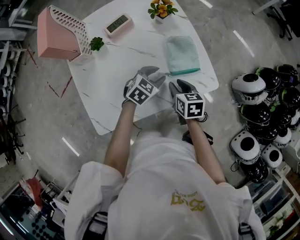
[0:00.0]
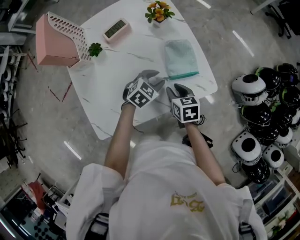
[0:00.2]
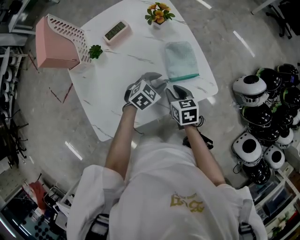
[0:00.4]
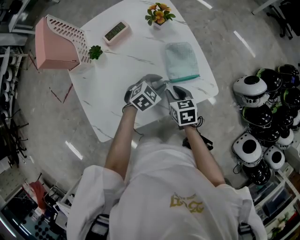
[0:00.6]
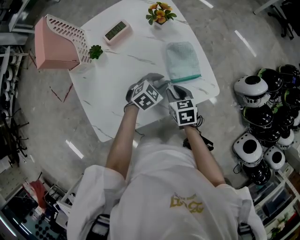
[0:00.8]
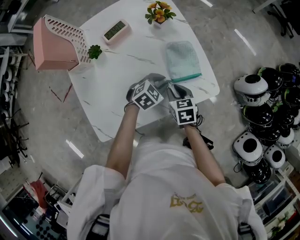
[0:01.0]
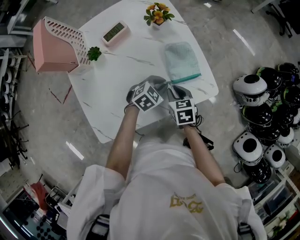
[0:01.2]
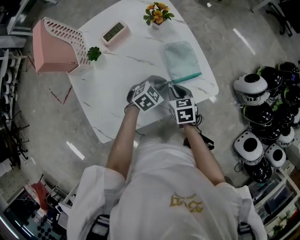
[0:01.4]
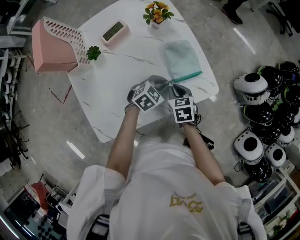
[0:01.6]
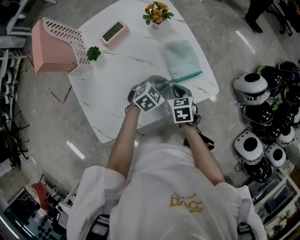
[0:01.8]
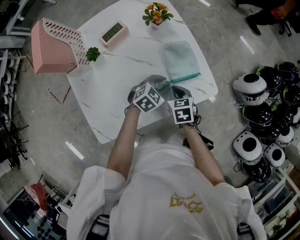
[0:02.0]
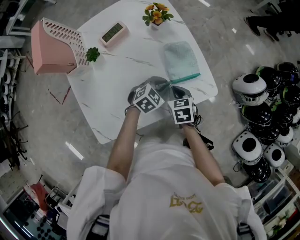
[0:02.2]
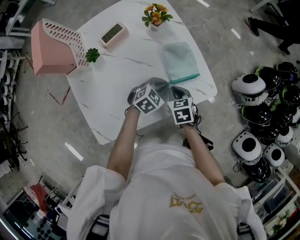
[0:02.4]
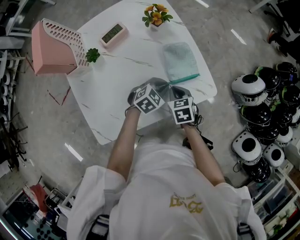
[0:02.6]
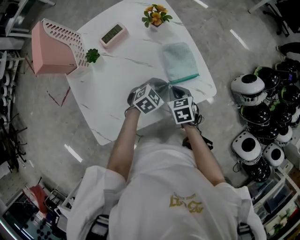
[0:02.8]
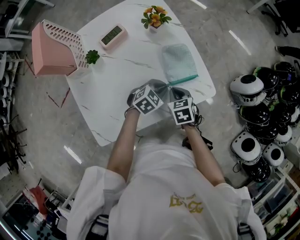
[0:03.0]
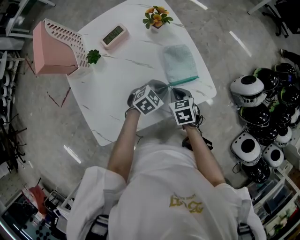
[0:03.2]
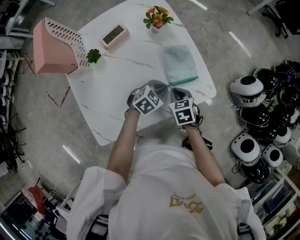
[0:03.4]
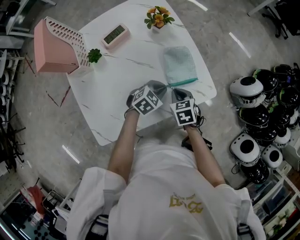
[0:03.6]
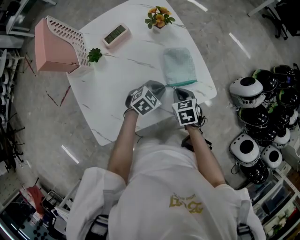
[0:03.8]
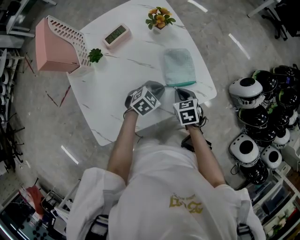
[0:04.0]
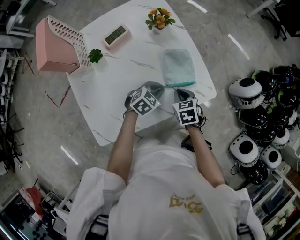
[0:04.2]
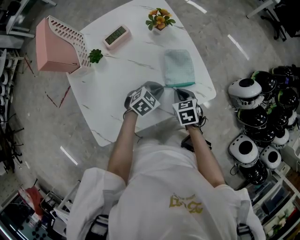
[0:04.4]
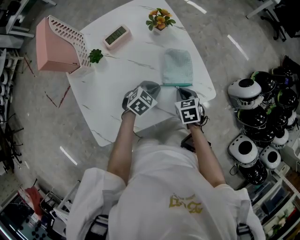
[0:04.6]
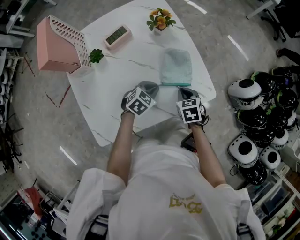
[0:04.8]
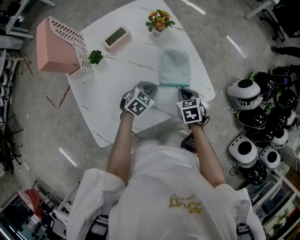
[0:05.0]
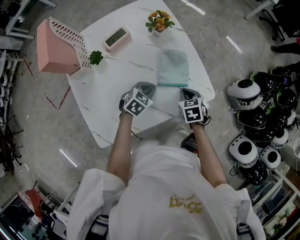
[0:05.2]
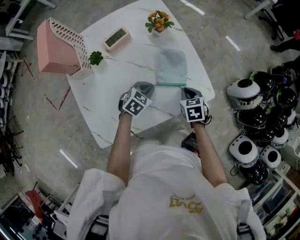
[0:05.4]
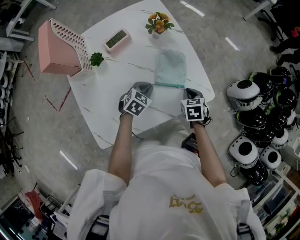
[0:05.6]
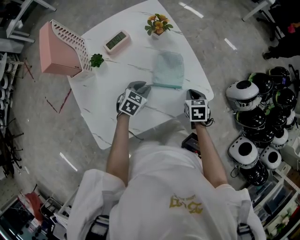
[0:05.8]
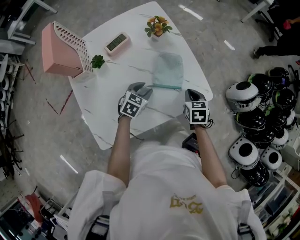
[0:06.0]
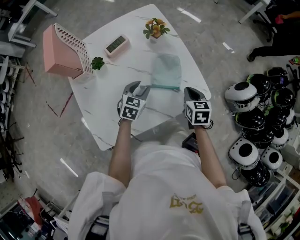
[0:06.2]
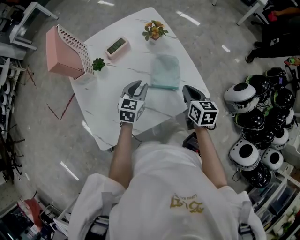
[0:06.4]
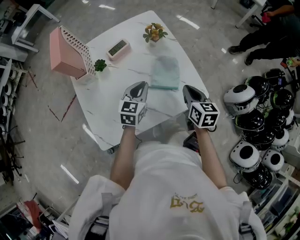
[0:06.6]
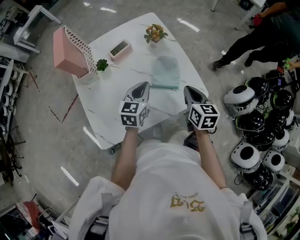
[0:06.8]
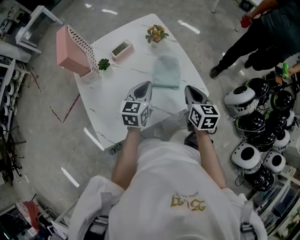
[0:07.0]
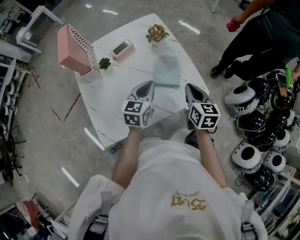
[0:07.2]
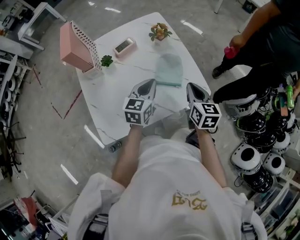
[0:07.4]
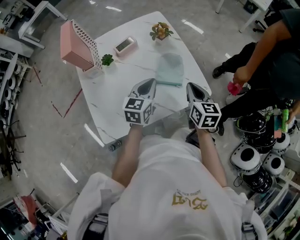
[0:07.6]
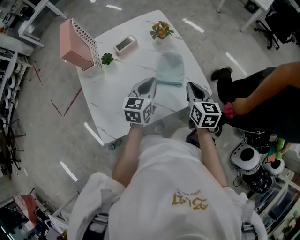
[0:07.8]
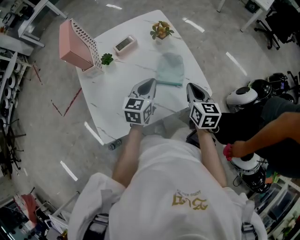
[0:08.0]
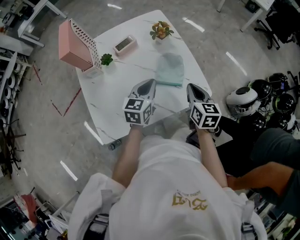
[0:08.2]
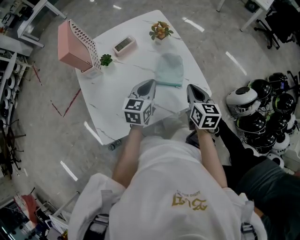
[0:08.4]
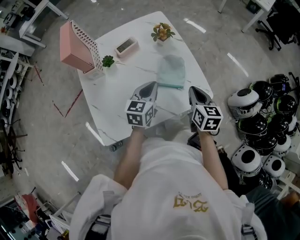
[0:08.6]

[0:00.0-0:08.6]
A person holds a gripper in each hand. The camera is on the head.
0.0 to 1.4 s: The left gripper closes its fingers.
1.4 to 4.4 s: The grippers stay close to where they were, moving slightly.
4.4 to 5.8 s: The right gripper moves to the right, about 5 cm. Meanwhile the left gripper moves to the left, about 10 cm.
5.8 to 7.2 s: Both grippers move upward, some 20 cm. The left gripper turns by roughly 30 degrees, and closes; the right gripper angles its fingers upward, by about 30 degrees.
7.2 to 8.6 s: There are only small adjustments of the grippers.

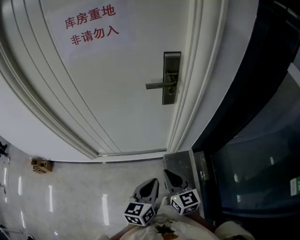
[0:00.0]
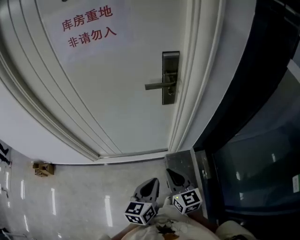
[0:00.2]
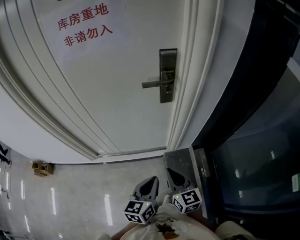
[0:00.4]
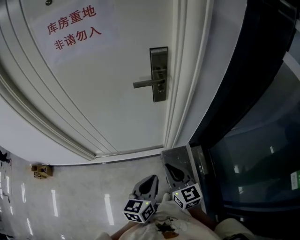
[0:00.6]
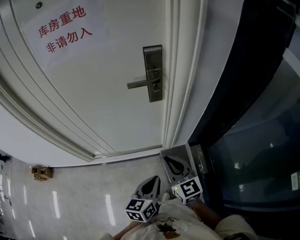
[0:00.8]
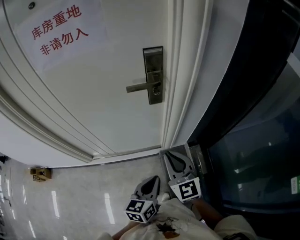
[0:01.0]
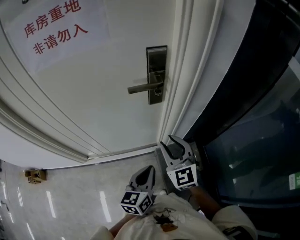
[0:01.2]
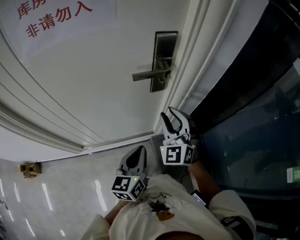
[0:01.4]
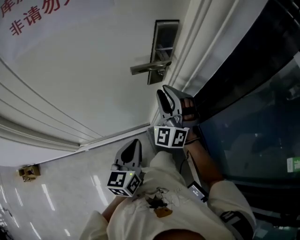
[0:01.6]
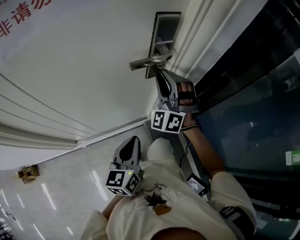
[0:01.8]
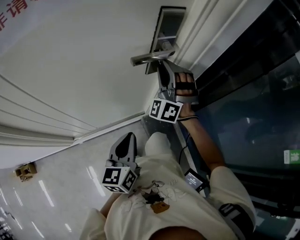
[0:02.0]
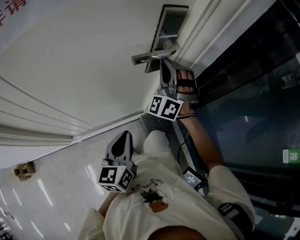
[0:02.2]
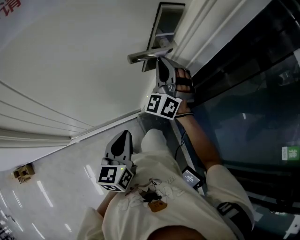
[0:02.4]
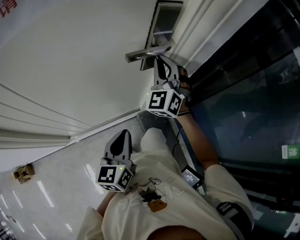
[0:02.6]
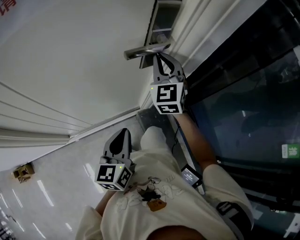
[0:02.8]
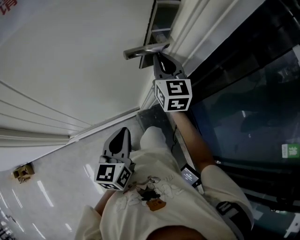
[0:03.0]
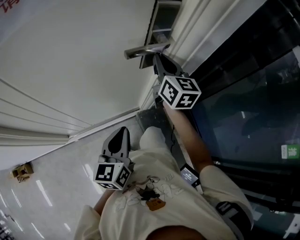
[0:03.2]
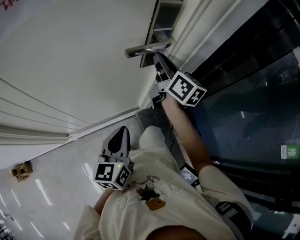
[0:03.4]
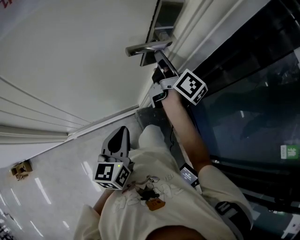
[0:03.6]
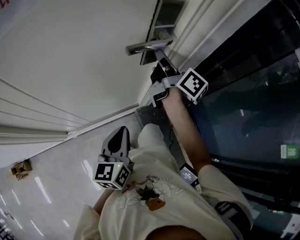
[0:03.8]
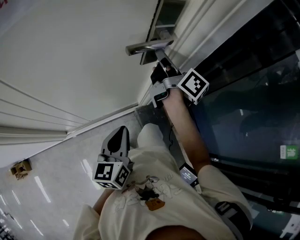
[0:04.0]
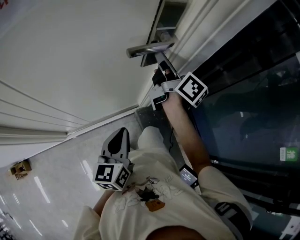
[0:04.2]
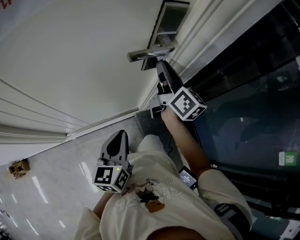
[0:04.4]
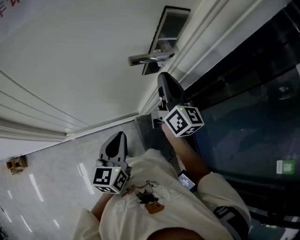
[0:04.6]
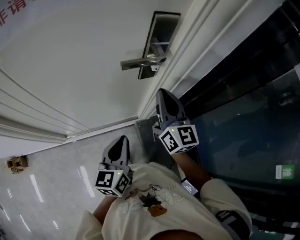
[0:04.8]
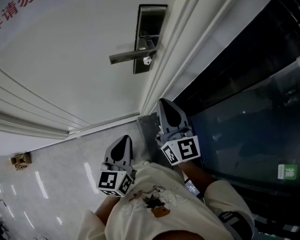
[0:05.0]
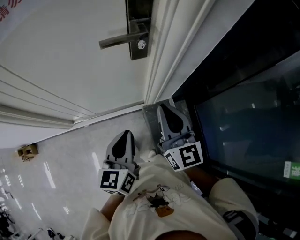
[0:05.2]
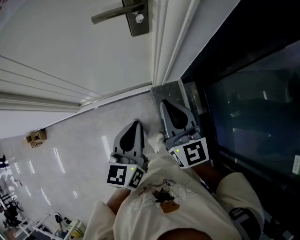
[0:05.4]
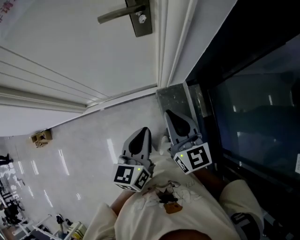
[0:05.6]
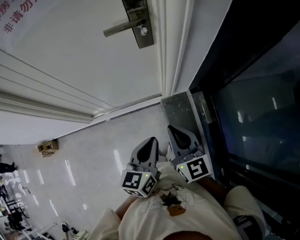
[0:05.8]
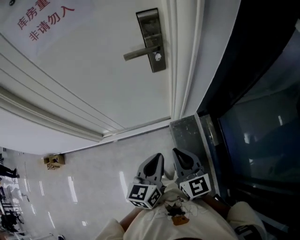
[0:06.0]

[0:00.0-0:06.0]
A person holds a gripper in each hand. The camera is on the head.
0.0 to 1.6 s: The right gripper heads forward, covering about 30 cm, rotates around the line of its fingers by about 70 degrees, counterclockwise from behind, and opens its fingers. Meanwhile the left gripper travels forward and to the left by approximately 20 cm.
1.6 to 3.0 s: The right gripper is displaced forward by roughly 10 cm, rolls clockwise, seen from behind, by about 50 degrees, and closes.
3.0 to 4.4 s: The right gripper rolls clockwise, seen from behind, by roughly 40 degrees.
4.4 to 6.0 s: The left gripper moves backward and to the right, approximately 20 cm, while the right gripper is displaced backward by about 35 cm, and rotates some 30 degrees.

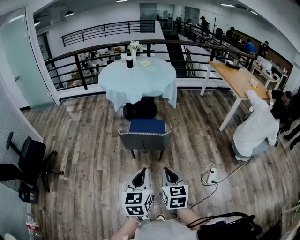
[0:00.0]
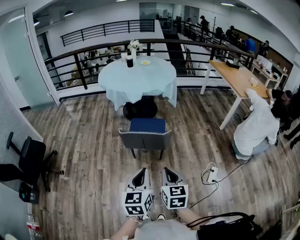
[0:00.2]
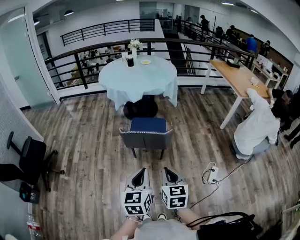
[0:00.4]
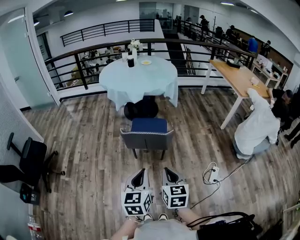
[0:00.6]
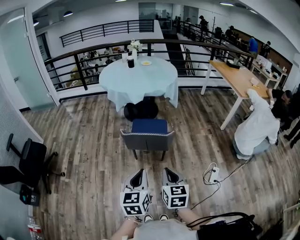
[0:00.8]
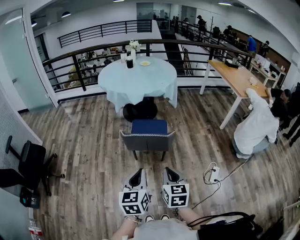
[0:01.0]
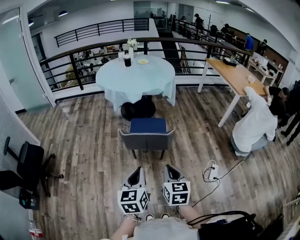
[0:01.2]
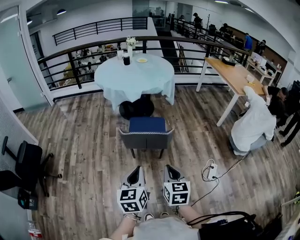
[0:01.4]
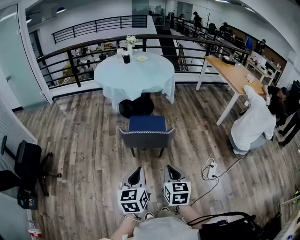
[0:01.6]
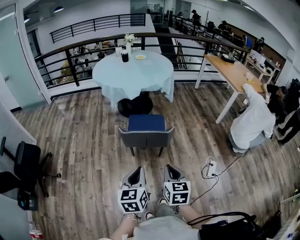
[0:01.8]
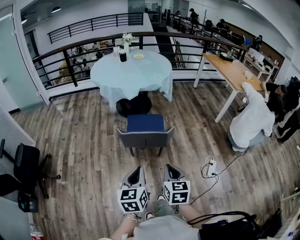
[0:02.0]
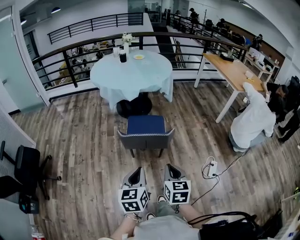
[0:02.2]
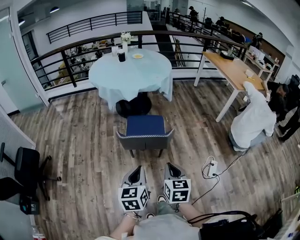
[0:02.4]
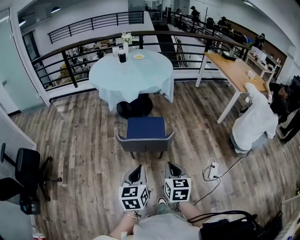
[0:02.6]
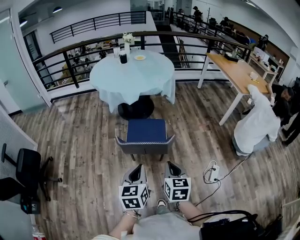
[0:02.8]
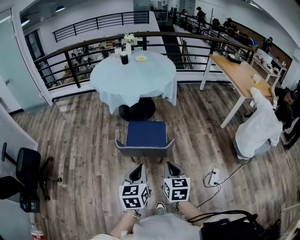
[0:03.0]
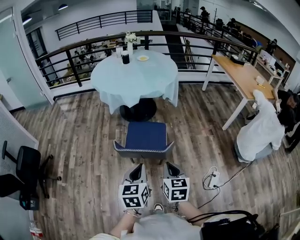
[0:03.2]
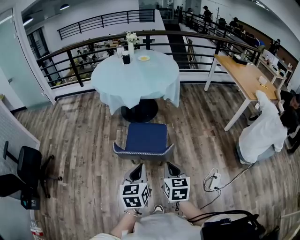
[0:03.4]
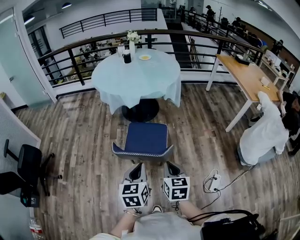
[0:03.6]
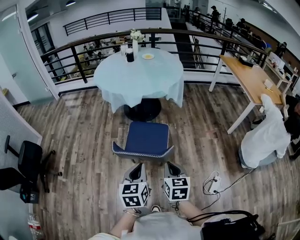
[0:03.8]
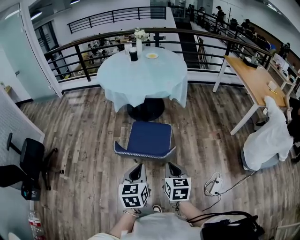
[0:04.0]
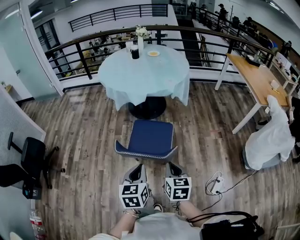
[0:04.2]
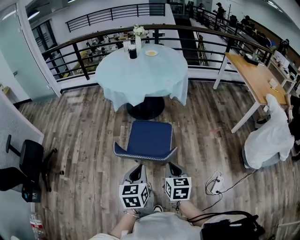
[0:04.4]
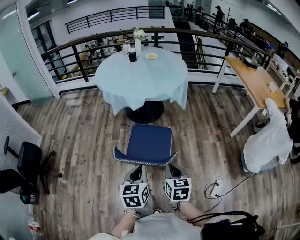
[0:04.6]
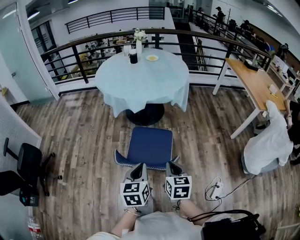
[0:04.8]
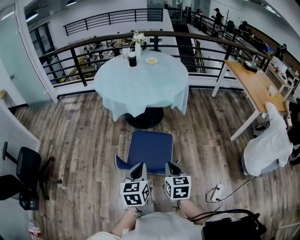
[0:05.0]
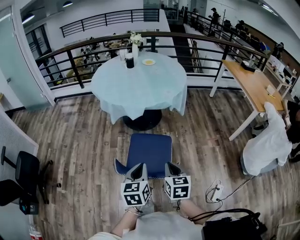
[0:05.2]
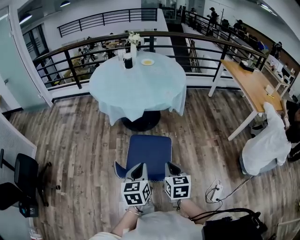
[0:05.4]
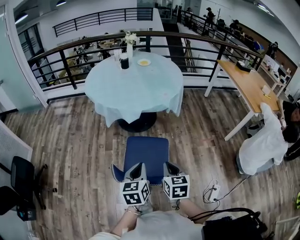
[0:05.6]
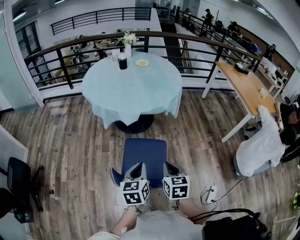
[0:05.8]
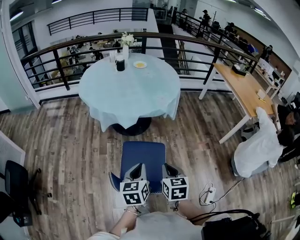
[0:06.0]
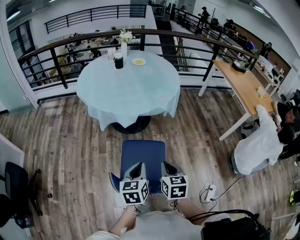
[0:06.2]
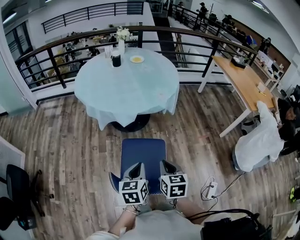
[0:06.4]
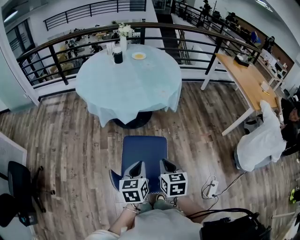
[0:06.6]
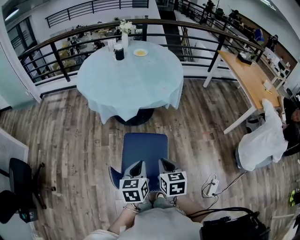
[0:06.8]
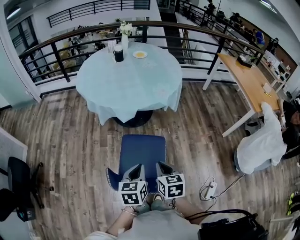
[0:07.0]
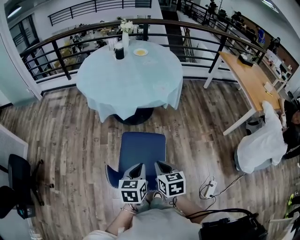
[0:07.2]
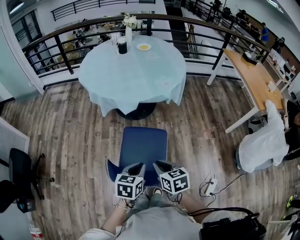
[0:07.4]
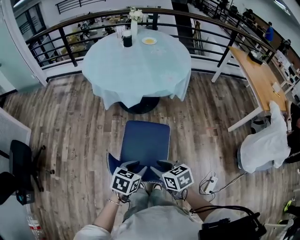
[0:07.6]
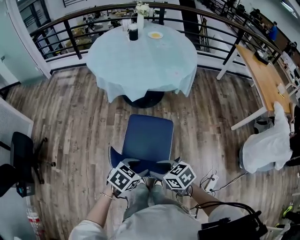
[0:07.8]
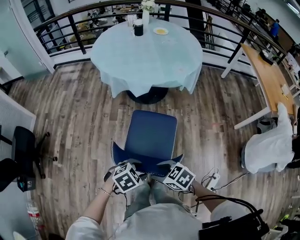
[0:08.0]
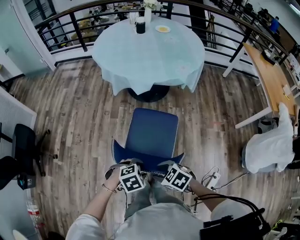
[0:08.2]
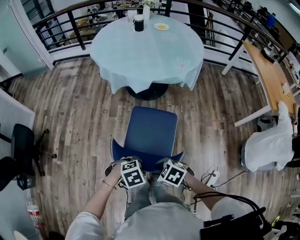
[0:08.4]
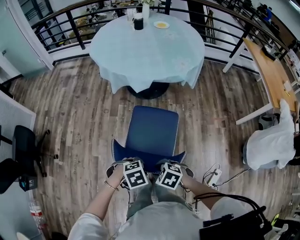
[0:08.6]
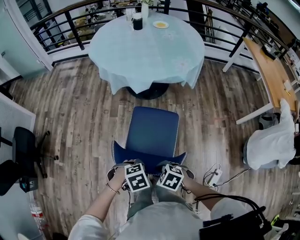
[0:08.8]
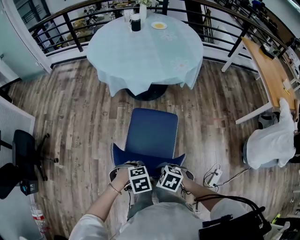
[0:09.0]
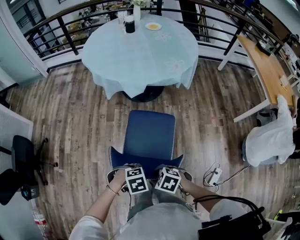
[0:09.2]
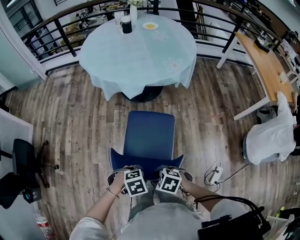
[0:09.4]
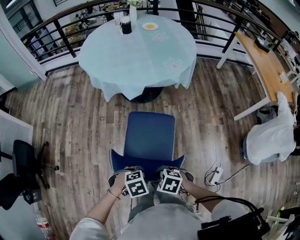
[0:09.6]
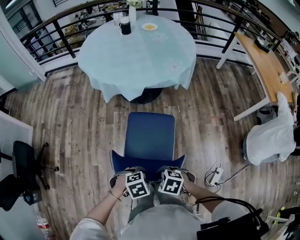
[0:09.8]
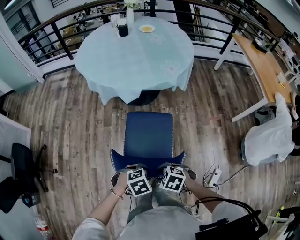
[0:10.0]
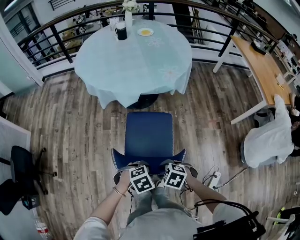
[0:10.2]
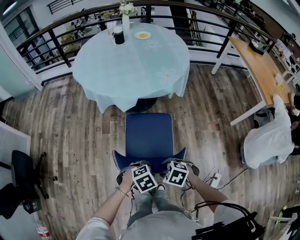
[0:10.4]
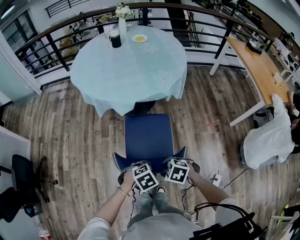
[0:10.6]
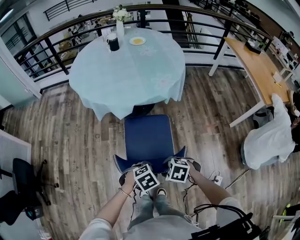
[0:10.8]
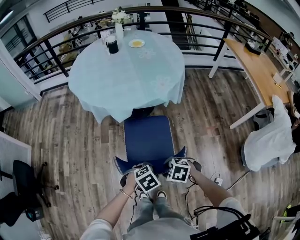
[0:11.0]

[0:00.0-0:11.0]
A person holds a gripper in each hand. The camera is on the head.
0.0 to 1.6 s: The right gripper moves some 5 cm, while the left gripper travels to the left by roughly 10 cm.
1.6 to 3.2 s: Both grippers move forward, about 15 cm.
3.2 to 4.8 s: The two grippers go approximately 10 cm forward.
4.8 to 6.2 s: Both grippers travel together forward, roughly 15 cm.
6.2 to 7.8 s: The left gripper changes place by some 15 cm, swivels roughly 40 degrees, and opens; the right gripper ends up roughly 15 cm from where it was, rotates roughly 50 degrees, and opens its fingers.
7.8 to 9.4 s: Both grippers travel together downward, about 5 cm. The left gripper rotates roughly 40 degrees. The right gripper turns by some 40 degrees.
9.4 to 11.0 s: The left gripper ends up approximately 15 cm from where it was, while the right gripper ends up some 20 cm from where it was.
